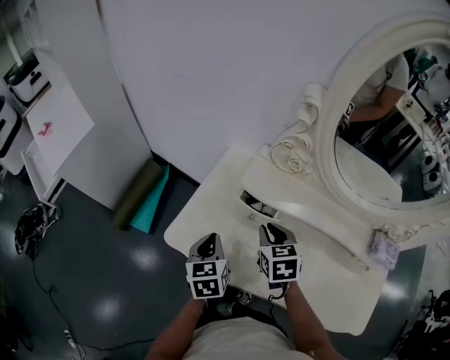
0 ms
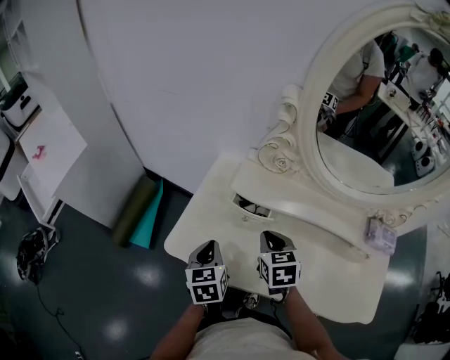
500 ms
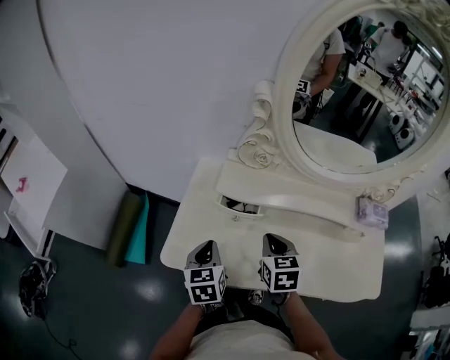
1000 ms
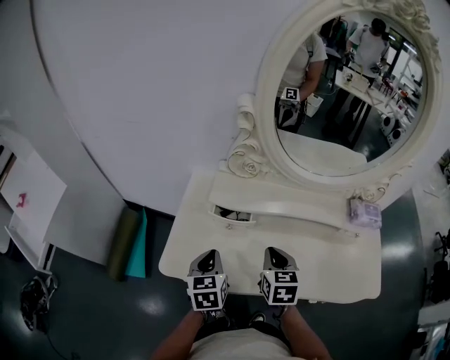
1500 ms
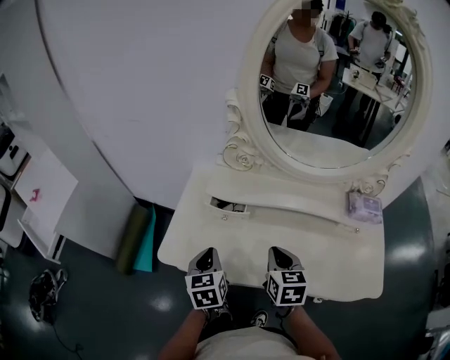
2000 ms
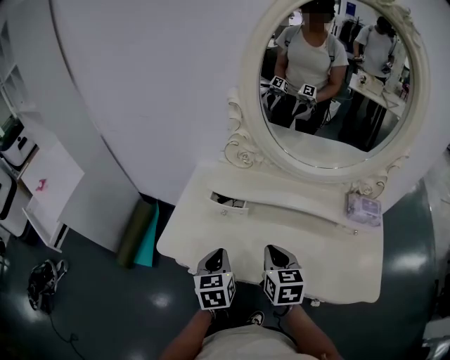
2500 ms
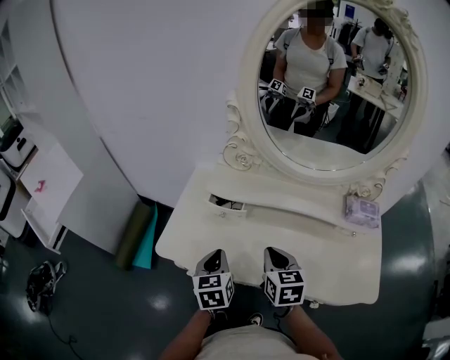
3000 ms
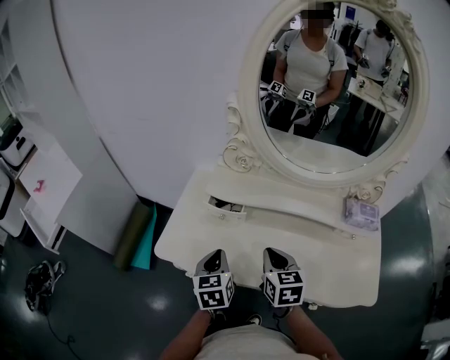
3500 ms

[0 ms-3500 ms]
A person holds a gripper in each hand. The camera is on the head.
0 ms to 2000 ms: The left gripper is displaced to the right by approximately 5 cm. The right gripper moves backward and to the right, approximately 15 cm, and turns by roughly 30 degrees.
2000 ms to 3500 ms: The grippers move only a little.

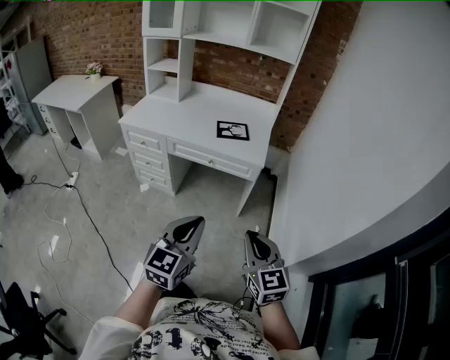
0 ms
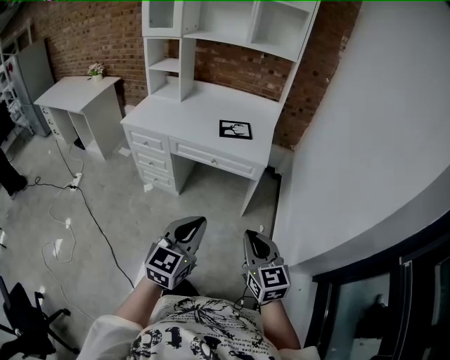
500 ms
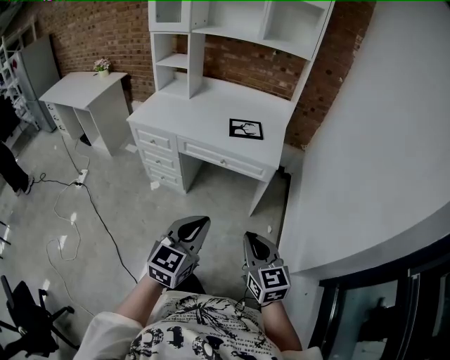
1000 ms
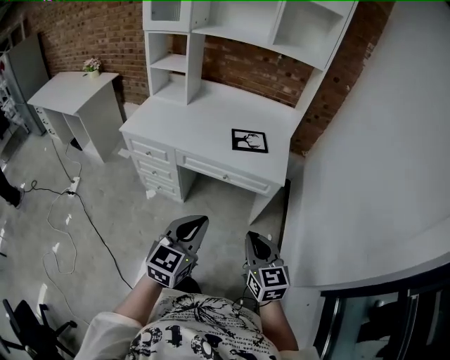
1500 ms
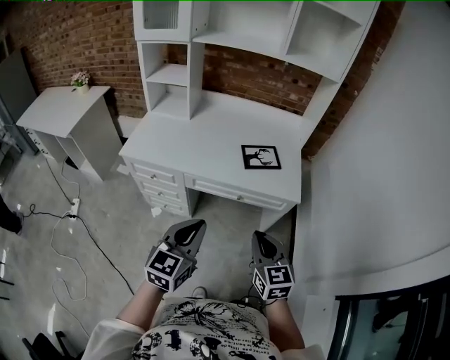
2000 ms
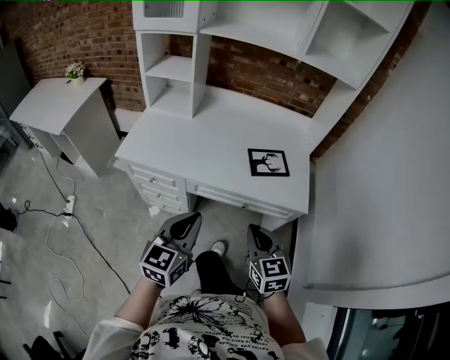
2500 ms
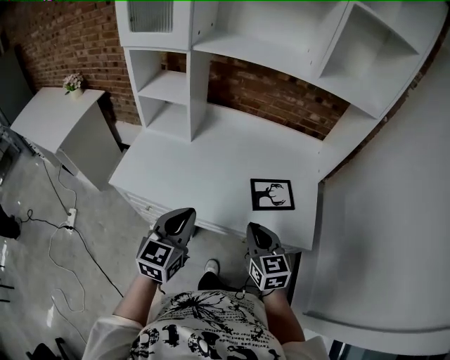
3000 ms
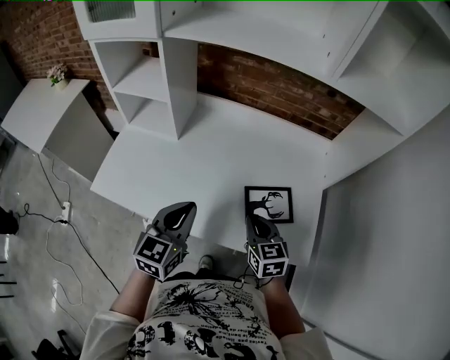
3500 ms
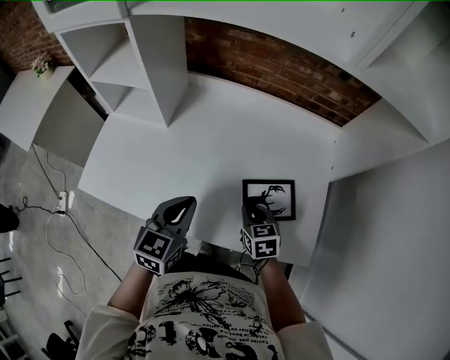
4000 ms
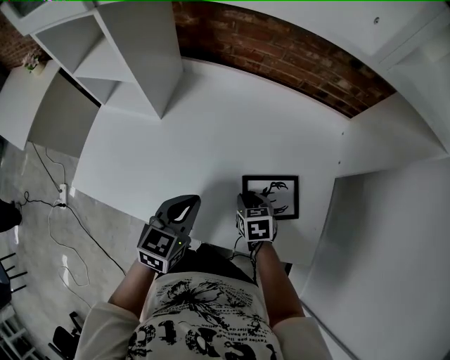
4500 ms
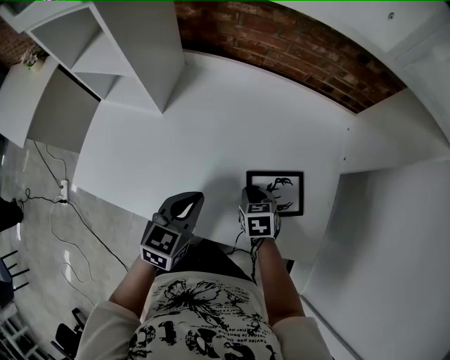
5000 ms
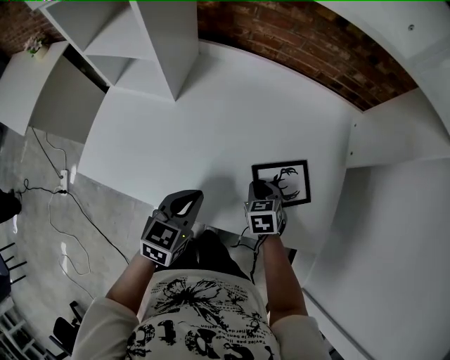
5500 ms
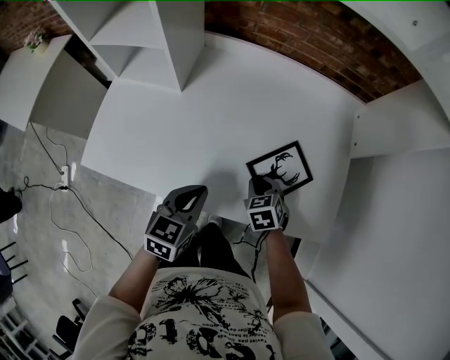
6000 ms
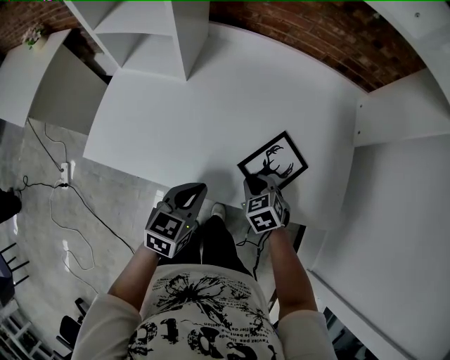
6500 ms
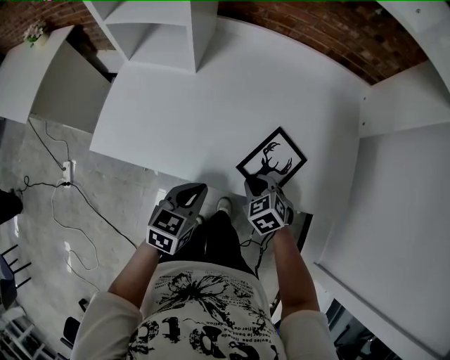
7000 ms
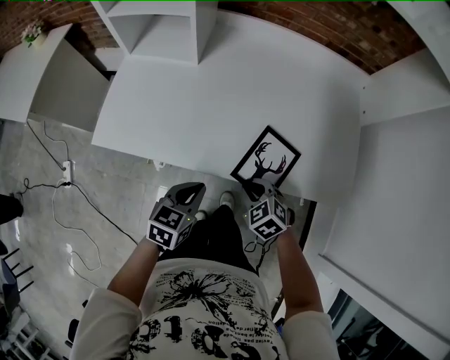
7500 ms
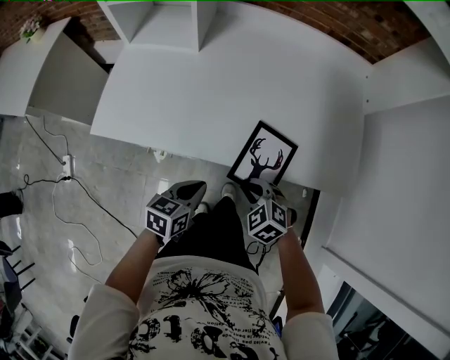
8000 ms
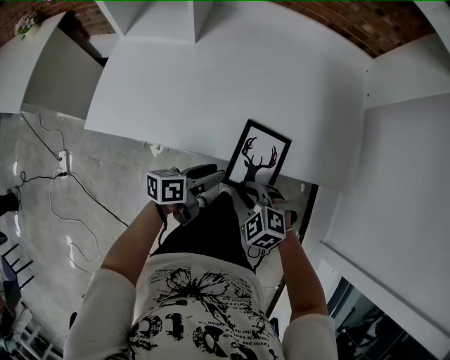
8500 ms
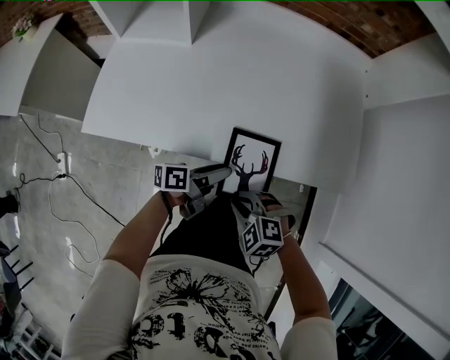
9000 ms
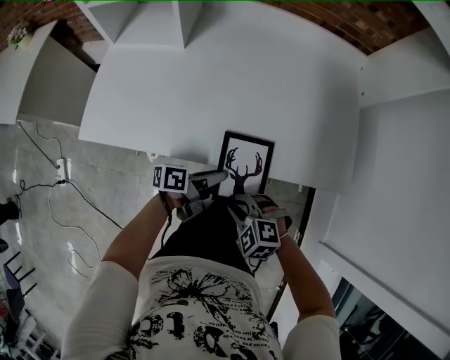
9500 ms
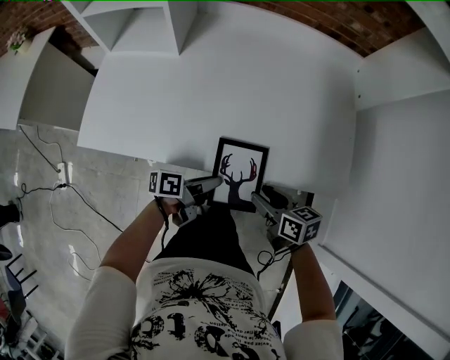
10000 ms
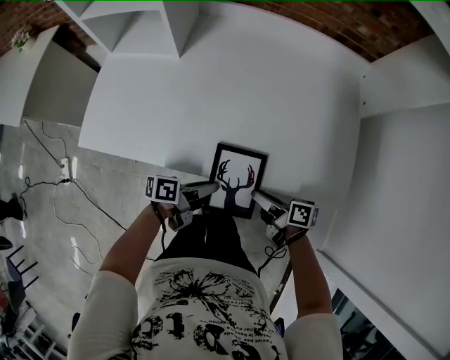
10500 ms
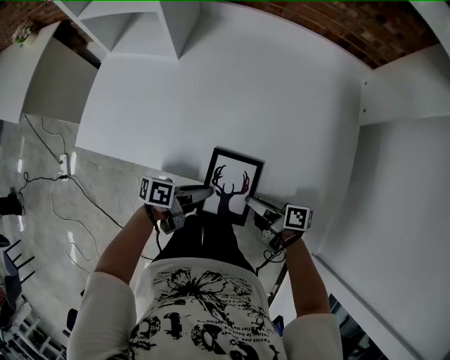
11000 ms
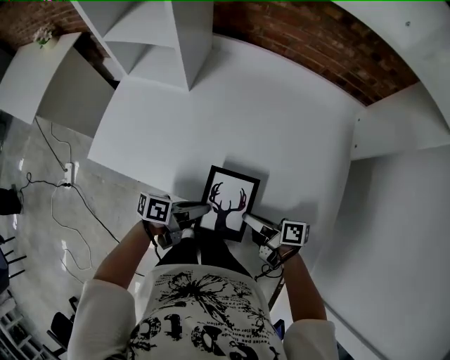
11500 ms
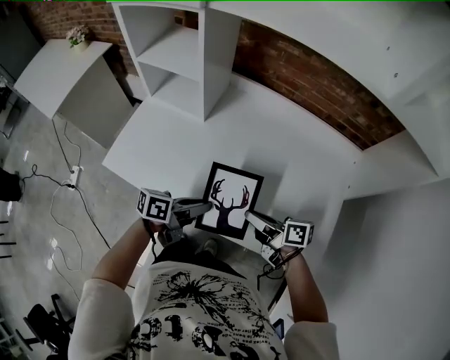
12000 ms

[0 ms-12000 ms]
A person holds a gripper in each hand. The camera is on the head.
0 ms to 2000 ms: Both grippers move forward and to the left, about 35 cm.
2000 ms to 4000 ms: The two grippers travel together, forward, about 50 cm. The right gripper moves downward, roughly 20 cm, and swivels some 30 degrees.
4000 ms to 6000 ms: Both grippers travel together downward, about 5 cm.
6000 ms to 8000 ms: The left gripper heads backward, downward and to the left, covering approximately 20 cm. Meanwhile the right gripper shifts roughly 20 cm backward and to the left, and rotates roughly 30 degrees.
8000 ms to 10000 ms: The left gripper is displaced to the right and forward by some 10 cm, twists about 40 degrees counterclockwise, seen from behind, and opens and closes again. Meanwhile the right gripper moves to the right, roughly 10 cm, rolls clockwise, seen from behind, by some 60 degrees, and opens up.
10000 ms to 12000 ms: The left gripper travels upward by roughly 15 cm, and turns by approximately 20 degrees. The right gripper changes place by approximately 15 cm, rotates some 30 degrees, and closes.

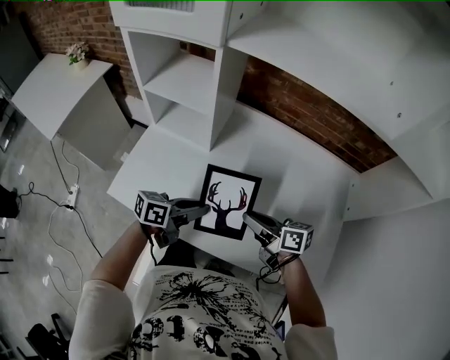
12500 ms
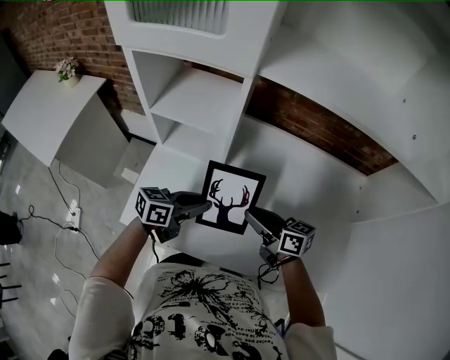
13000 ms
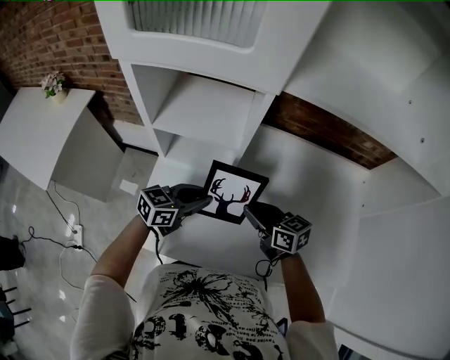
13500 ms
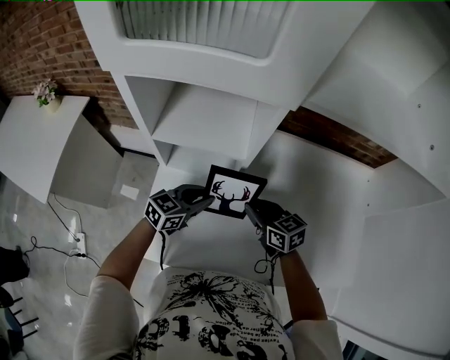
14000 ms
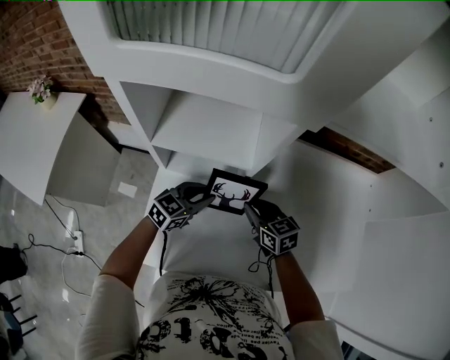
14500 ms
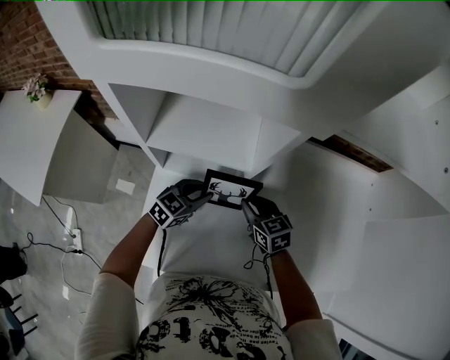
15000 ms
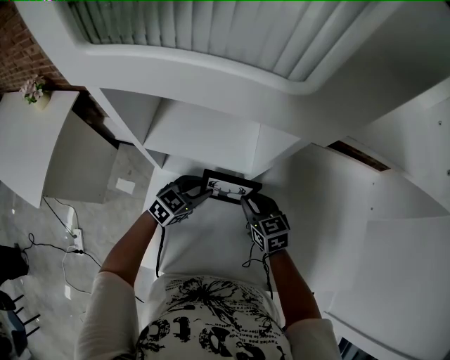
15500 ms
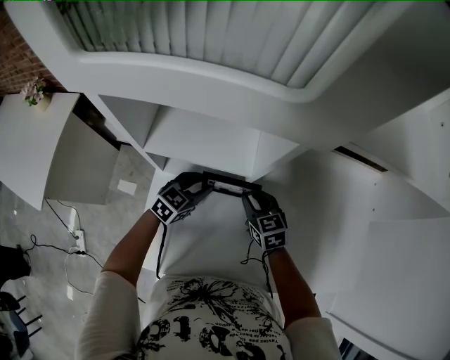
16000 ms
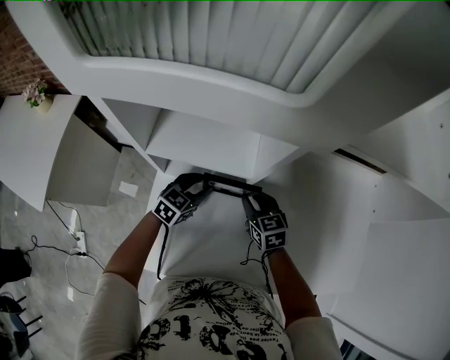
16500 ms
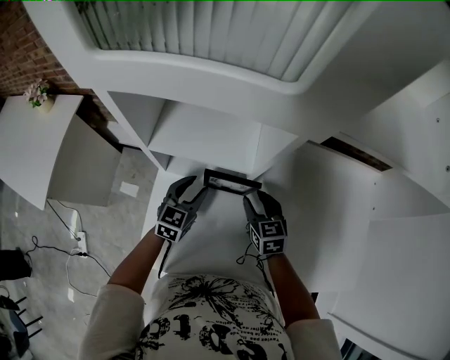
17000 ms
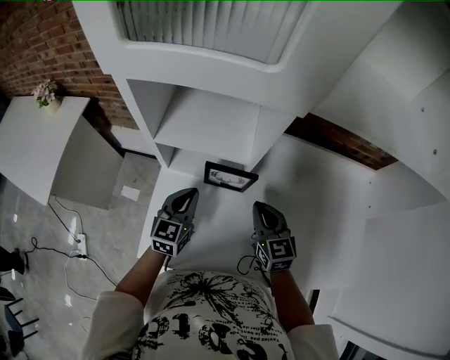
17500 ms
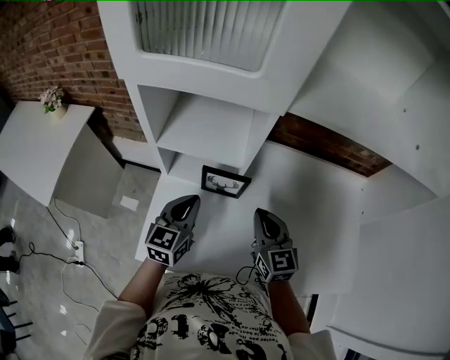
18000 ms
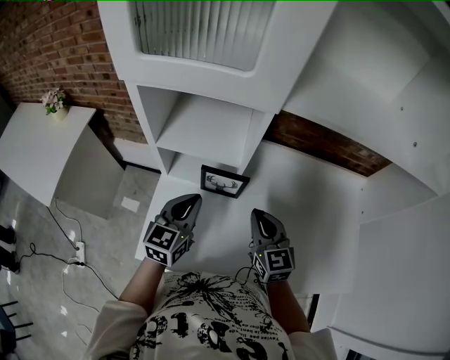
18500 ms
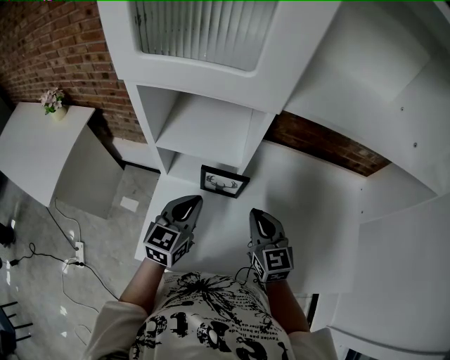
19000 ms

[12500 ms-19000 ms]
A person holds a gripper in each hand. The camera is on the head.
12500 ms to 14500 ms: The left gripper moves forward and to the left, some 30 cm, and rolls clockwise, seen from behind, by some 40 degrees. The right gripper moves to the left and forward, roughly 25 cm, and turns by about 40 degrees.
14500 ms to 17000 ms: The right gripper opens. The left gripper ends up approximately 5 cm from where it was, and rotates some 30 degrees.
17000 ms to 19000 ms: The two grippers go approximately 15 cm upward and backward. The right gripper closes up. The left gripper closes its fingers.

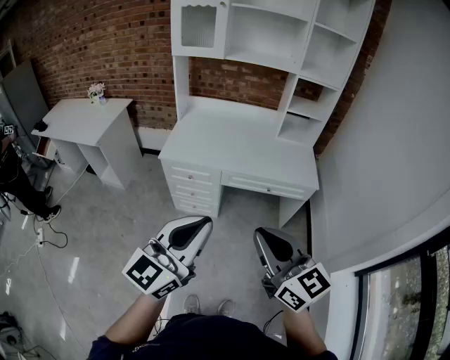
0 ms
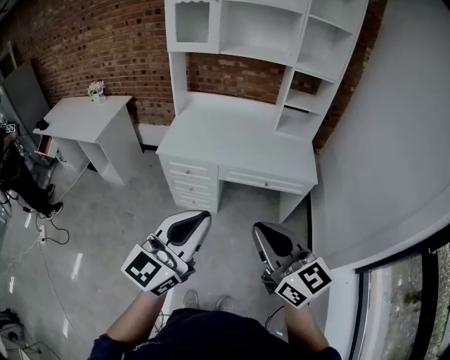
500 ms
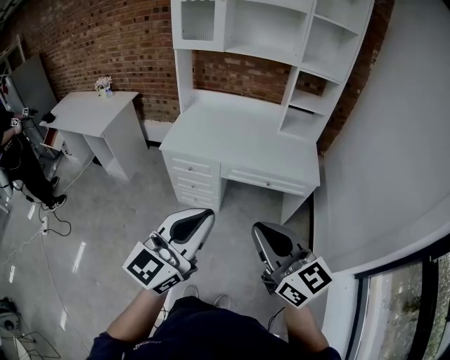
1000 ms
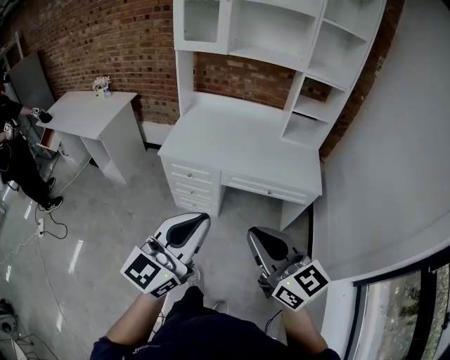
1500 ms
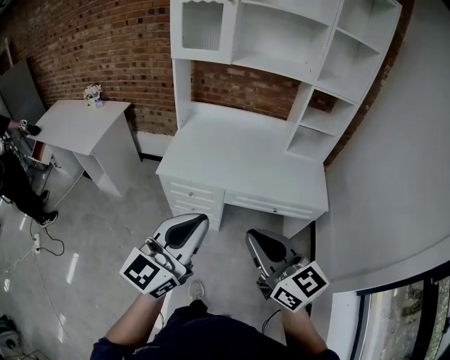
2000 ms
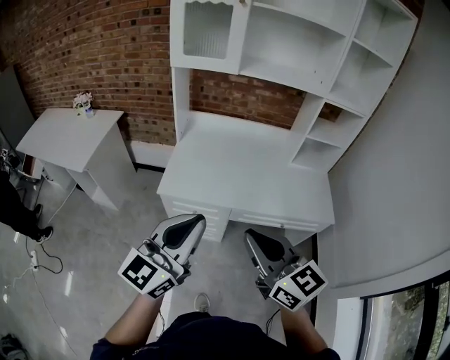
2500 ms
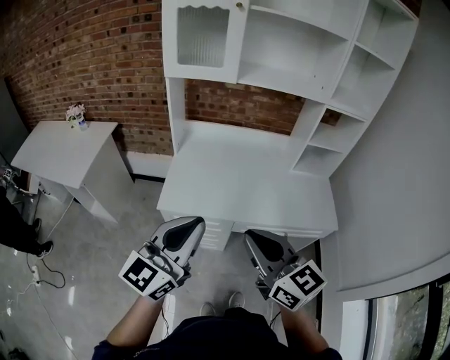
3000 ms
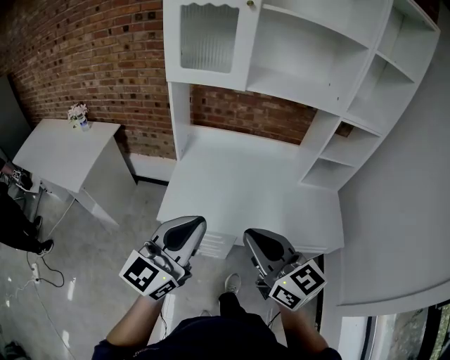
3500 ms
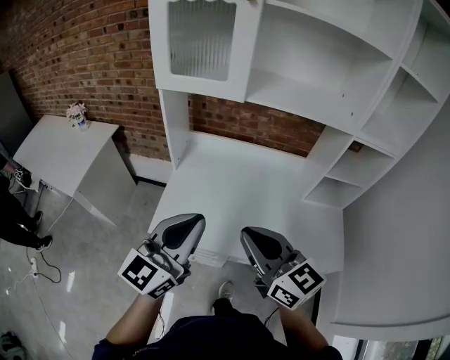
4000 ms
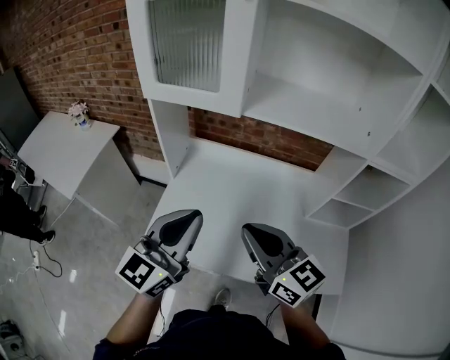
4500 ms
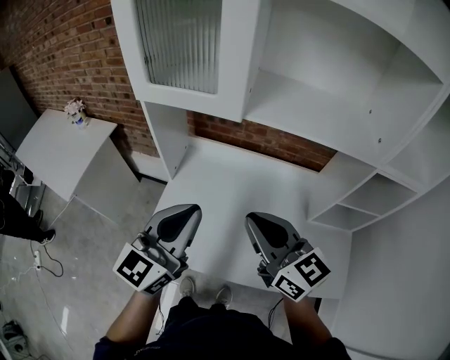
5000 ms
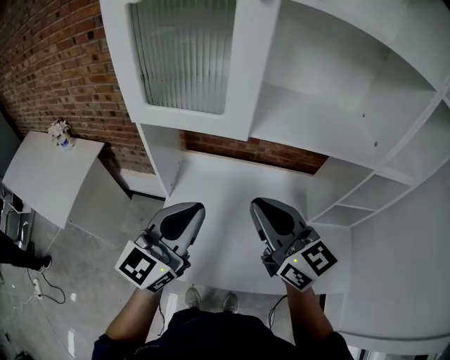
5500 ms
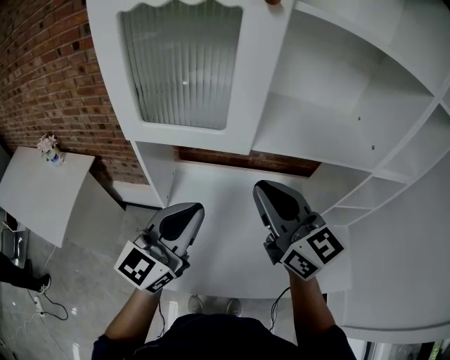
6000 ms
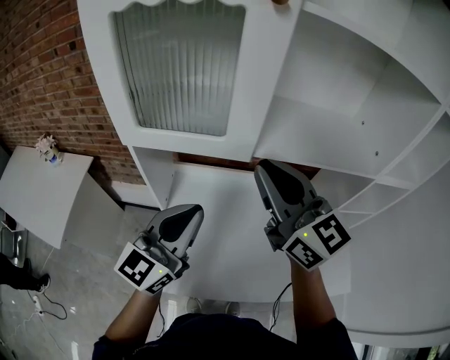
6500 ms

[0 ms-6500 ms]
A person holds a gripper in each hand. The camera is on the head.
0 ms to 2000 ms: Both grippers move forward, roughly 15 cm.
2000 ms to 4500 ms: The pair of grippers is taken forward, approximately 50 cm.
4500 ms to 6500 ms: The right gripper heads forward and upward, covering about 25 cm, and turns by roughly 20 degrees, while the left gripper shifts about 15 cm forward.
